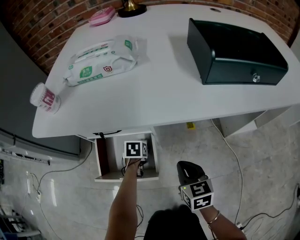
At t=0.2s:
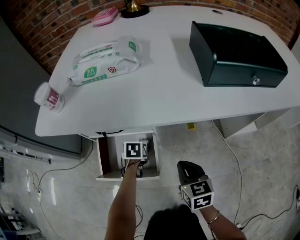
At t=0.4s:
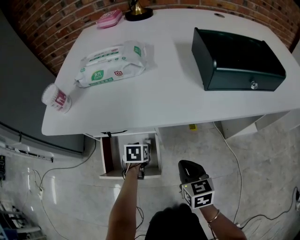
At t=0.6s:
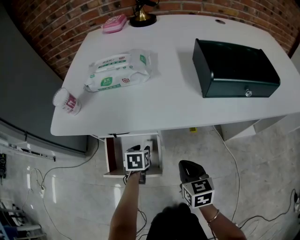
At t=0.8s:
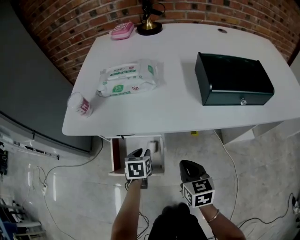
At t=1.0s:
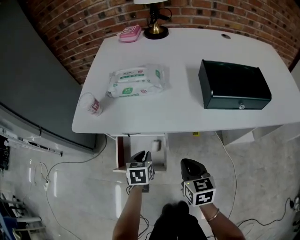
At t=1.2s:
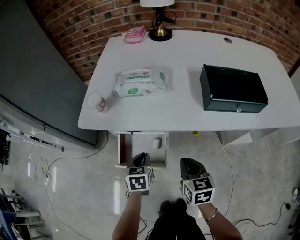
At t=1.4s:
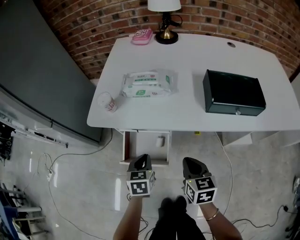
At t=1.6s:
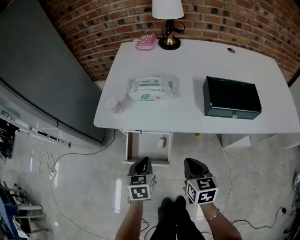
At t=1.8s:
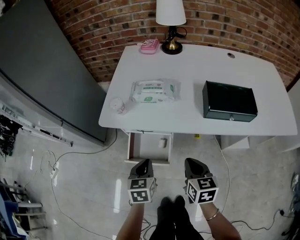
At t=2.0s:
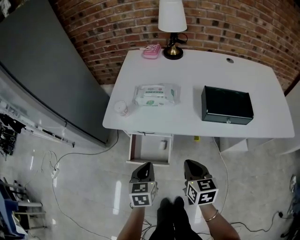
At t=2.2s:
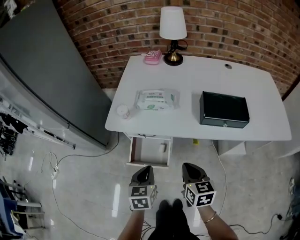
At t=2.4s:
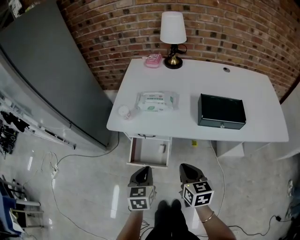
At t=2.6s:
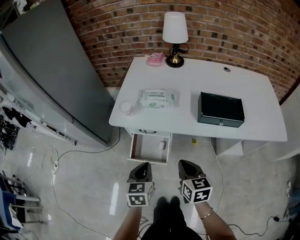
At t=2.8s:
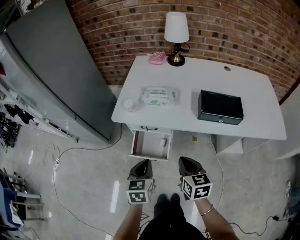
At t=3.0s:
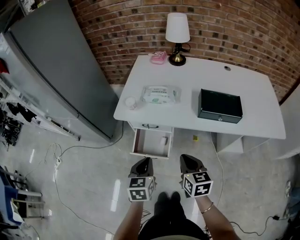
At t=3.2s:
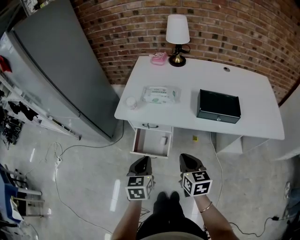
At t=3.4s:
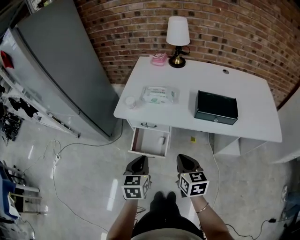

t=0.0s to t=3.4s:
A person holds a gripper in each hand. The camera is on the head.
t=0.0s to t=1.6s: Both grippers travel together upward, roughly 30 cm. The left gripper rotates roughly 30 degrees, and closes.
t=1.6s to t=3.4s: The two grippers go about 20 cm upward and backward.

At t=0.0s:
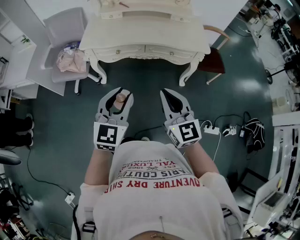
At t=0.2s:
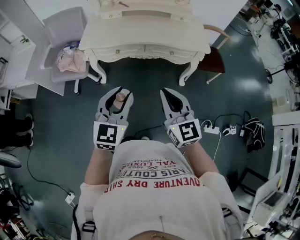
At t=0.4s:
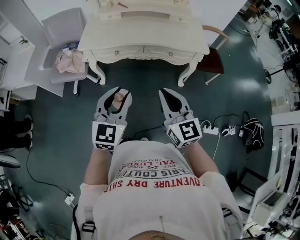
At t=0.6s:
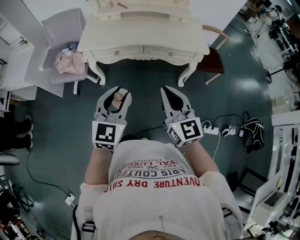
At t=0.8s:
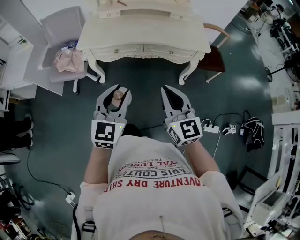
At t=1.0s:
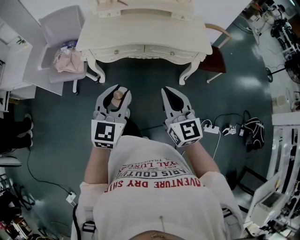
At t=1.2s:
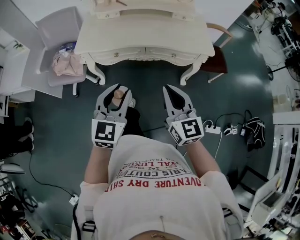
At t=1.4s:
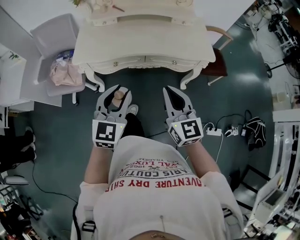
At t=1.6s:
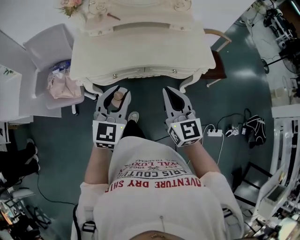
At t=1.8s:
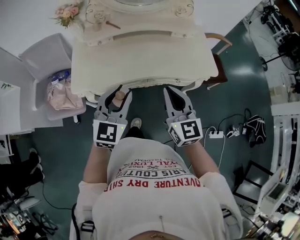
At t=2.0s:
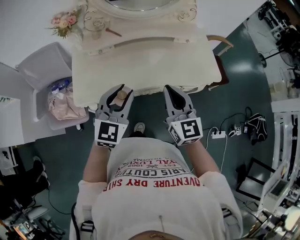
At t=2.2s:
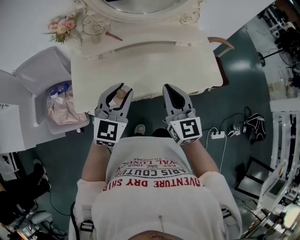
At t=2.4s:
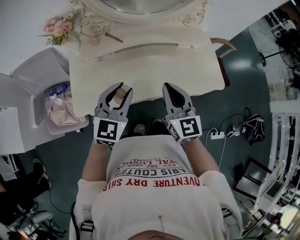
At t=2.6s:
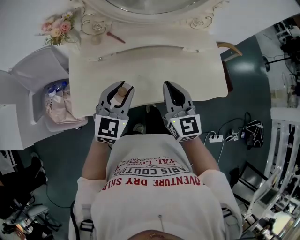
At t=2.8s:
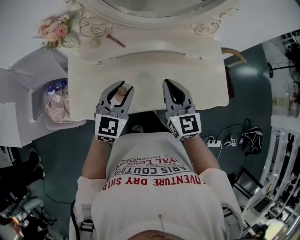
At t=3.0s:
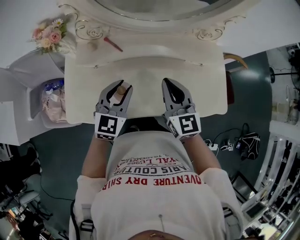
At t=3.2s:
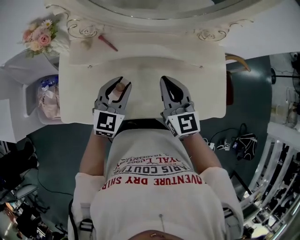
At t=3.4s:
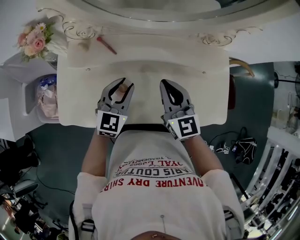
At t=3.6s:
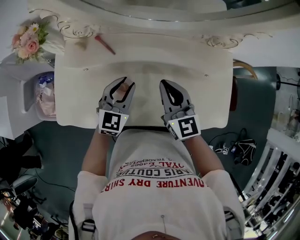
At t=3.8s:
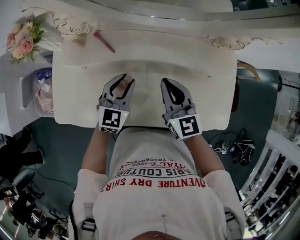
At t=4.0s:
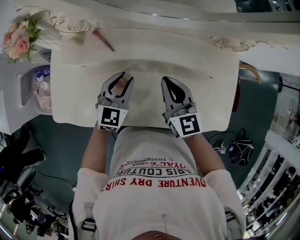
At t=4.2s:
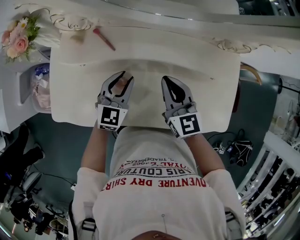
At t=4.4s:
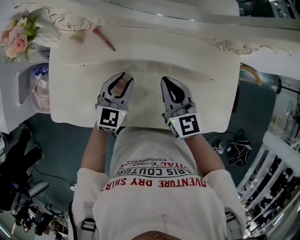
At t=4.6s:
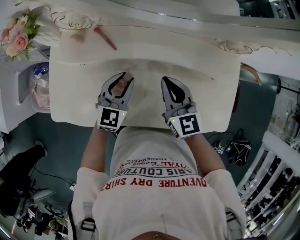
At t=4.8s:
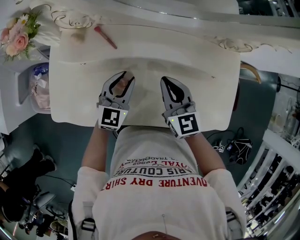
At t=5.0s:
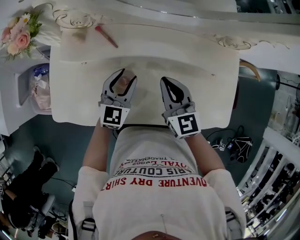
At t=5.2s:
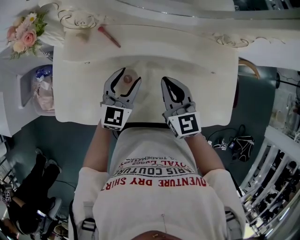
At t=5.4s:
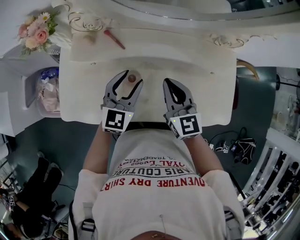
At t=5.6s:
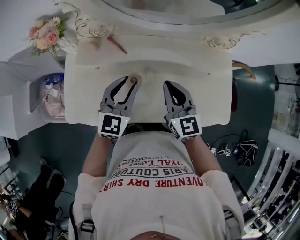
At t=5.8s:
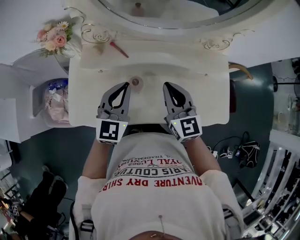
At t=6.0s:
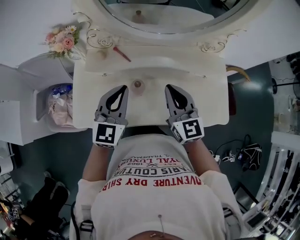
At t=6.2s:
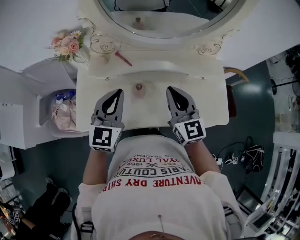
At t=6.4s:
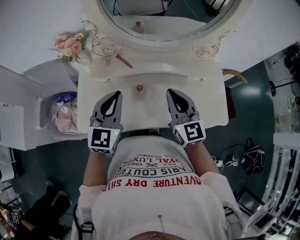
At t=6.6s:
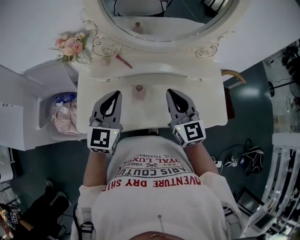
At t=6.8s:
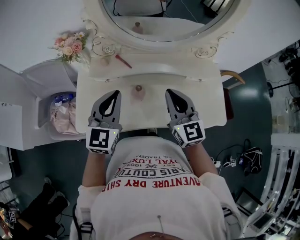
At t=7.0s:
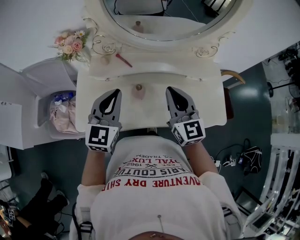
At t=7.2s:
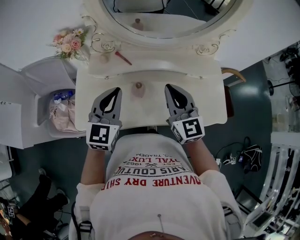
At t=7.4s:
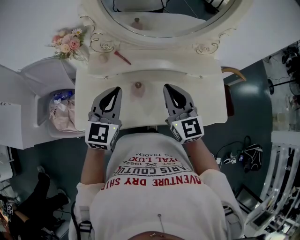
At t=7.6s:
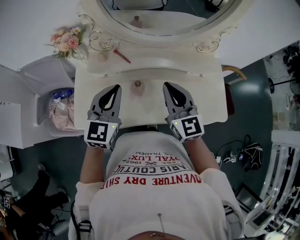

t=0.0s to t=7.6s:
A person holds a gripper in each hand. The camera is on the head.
t=0.0s to t=1.6s: Both grippers travel together forward, approximately 25 cm.
t=1.6s to t=3.0s: Both grippers travel together forward, about 40 cm.
t=3.0s to t=4.6s: Both grippers travel together downward and forward, roughly 15 cm.
t=4.6s to t=6.0s: The left gripper shifts roughly 20 cm upward, and closes, while the right gripper shifts some 15 cm upward and backward.
t=6.0s to t=7.6s: The grippers move only a little.

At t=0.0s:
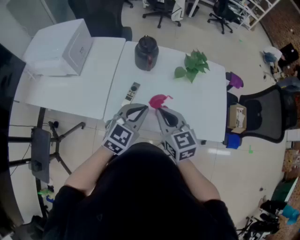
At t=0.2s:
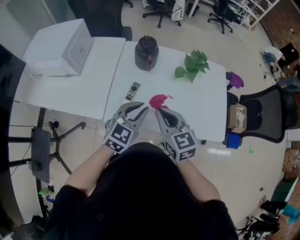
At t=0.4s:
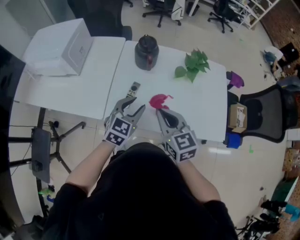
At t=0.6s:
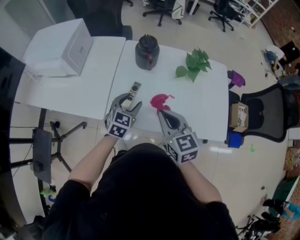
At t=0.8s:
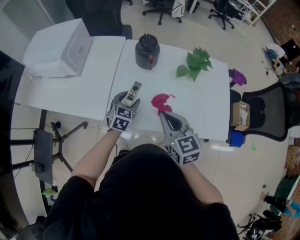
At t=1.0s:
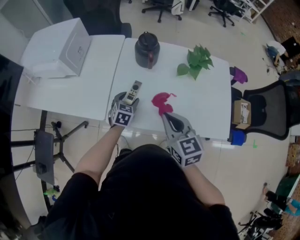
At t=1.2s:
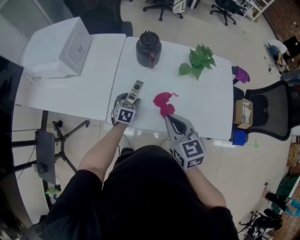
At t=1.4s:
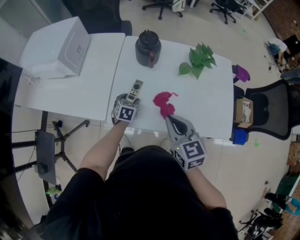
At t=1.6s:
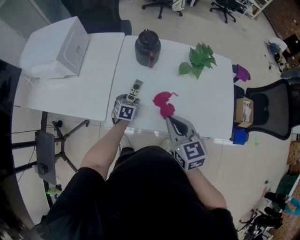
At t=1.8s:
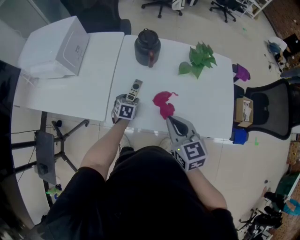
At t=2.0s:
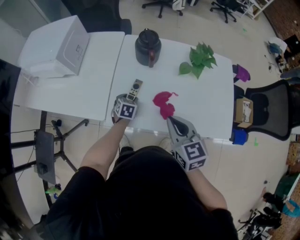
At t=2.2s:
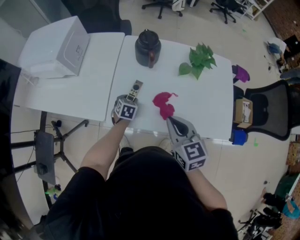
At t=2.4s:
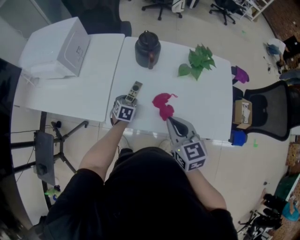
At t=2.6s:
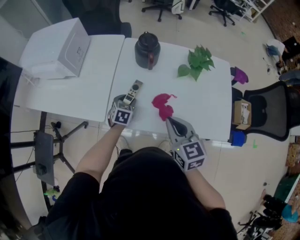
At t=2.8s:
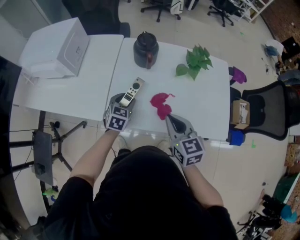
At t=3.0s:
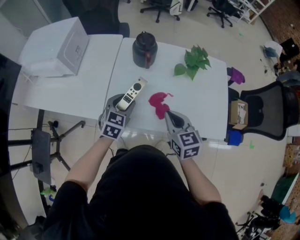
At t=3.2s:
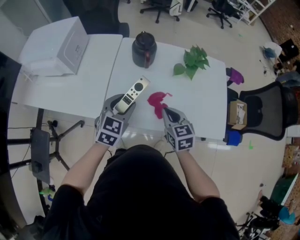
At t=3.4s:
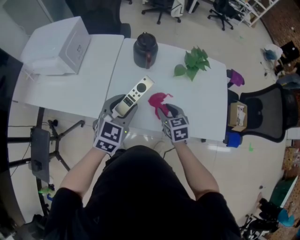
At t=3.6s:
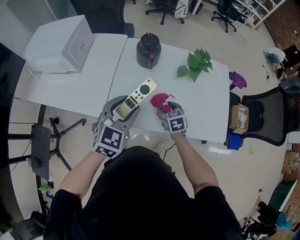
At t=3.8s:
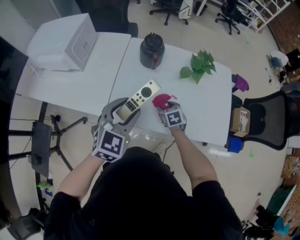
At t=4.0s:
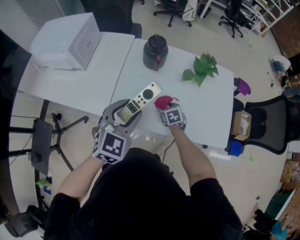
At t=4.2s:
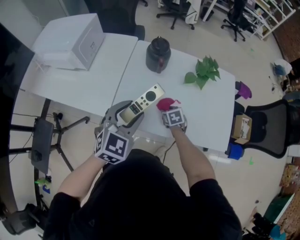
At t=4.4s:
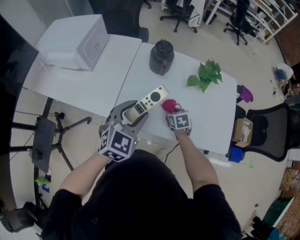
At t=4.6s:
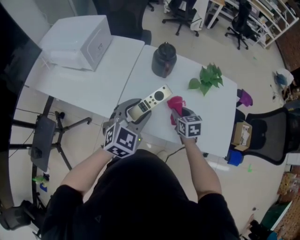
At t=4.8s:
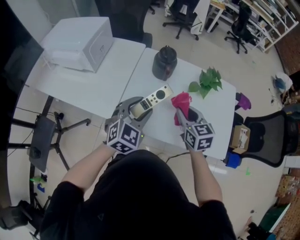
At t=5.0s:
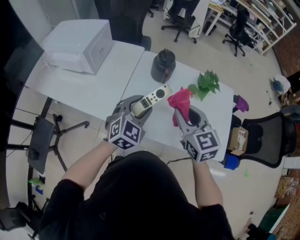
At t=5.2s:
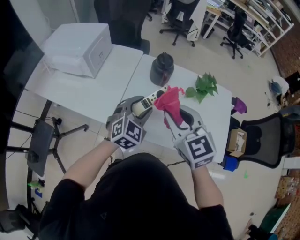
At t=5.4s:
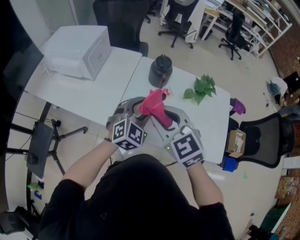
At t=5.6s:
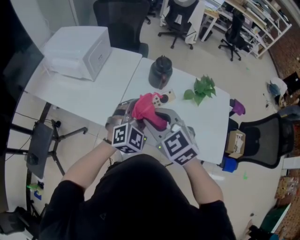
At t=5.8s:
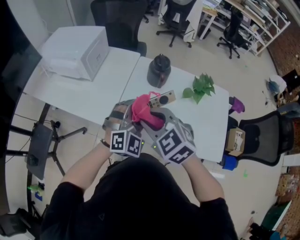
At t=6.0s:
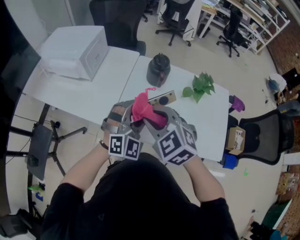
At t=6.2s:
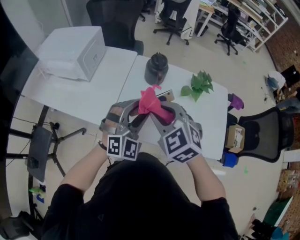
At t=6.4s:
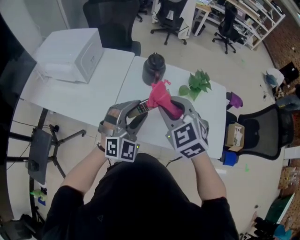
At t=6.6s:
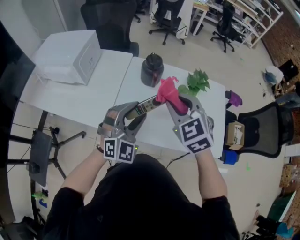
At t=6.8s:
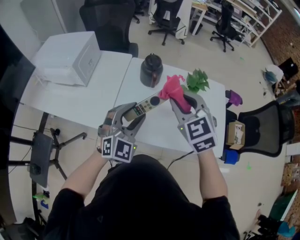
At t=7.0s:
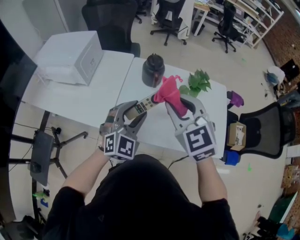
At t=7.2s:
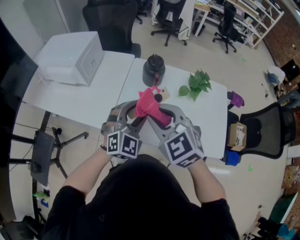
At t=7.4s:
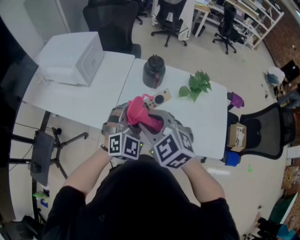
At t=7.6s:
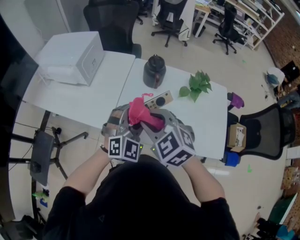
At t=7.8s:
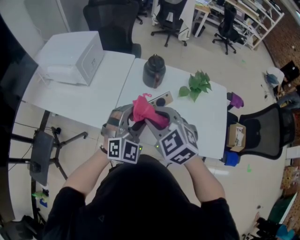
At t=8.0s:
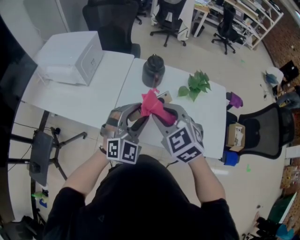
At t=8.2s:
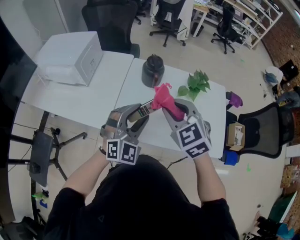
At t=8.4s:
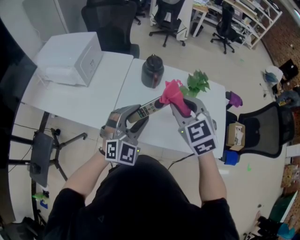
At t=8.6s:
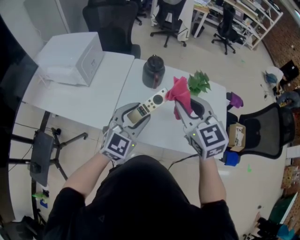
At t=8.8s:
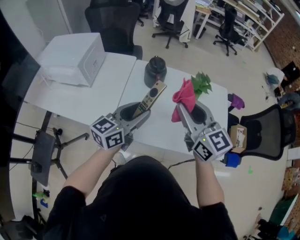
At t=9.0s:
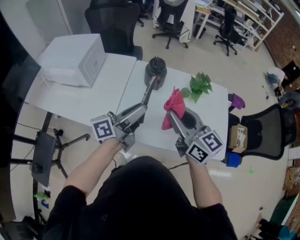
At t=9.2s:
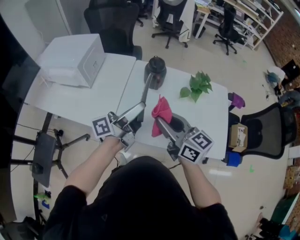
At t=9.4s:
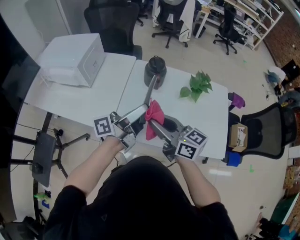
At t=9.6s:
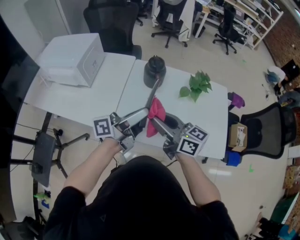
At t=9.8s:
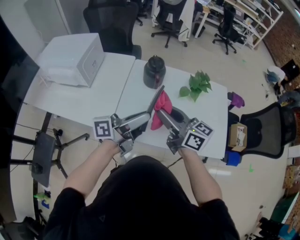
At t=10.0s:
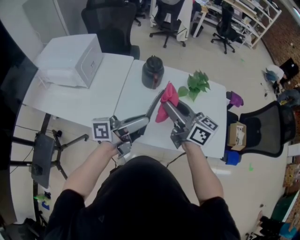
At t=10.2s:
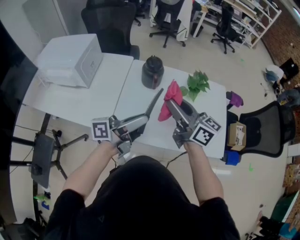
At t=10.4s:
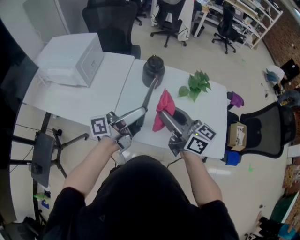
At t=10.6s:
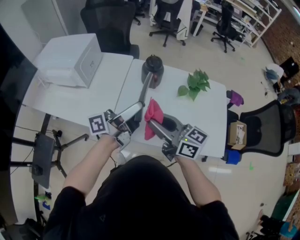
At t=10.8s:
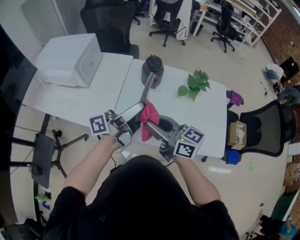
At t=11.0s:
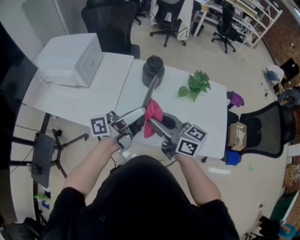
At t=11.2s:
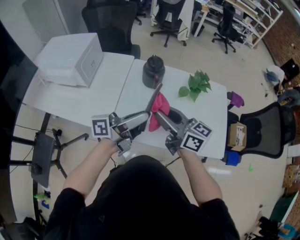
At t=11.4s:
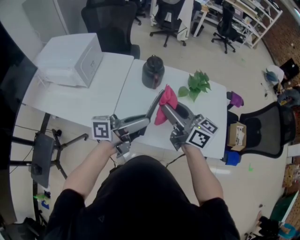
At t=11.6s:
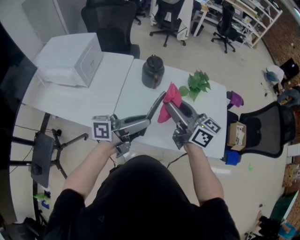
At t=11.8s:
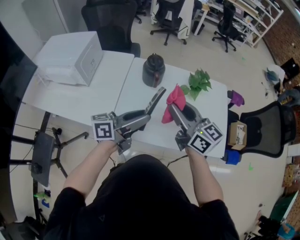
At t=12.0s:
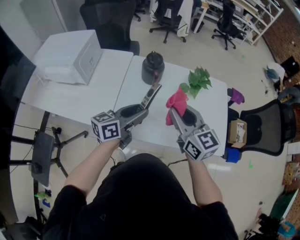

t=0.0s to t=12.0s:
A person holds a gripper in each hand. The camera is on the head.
t=0.0s to t=1.6s: The left gripper travels downward and forward by about 30 cm, tilts its fingers approximately 30 degrees downward, and opens its fingers.
t=1.6s to t=3.0s: The left gripper goes some 15 cm upward, and turns by approximately 20 degrees.
t=3.0s to t=4.4s: The left gripper shifts approximately 15 cm upward and backward. The right gripper goes some 20 cm downward and forward, rotates about 30 degrees, and opens up.
t=4.4s to t=6.0s: The right gripper heads upward and to the left, covering some 35 cm, and twists about 40 degrees counterclockwise, seen from behind. Meanwhile the left gripper turns by some 30 degrees.
t=6.0s to t=7.6s: The right gripper reaches approximately 10 cm to the right, then returns.
t=7.6s to t=9.0s: The left gripper rotates around the line of its fingers by roughly 100 degrees, counterclockwise from behind, while the right gripper is displaced to the right by roughly 10 cm, and points its fingers roughly 30 degrees further upward.
t=10.4s to t=12.0s: The right gripper changes its angle by approximately 30 degrees; the left gripper travels downward by about 5 cm, and turns by roughly 40 degrees.
